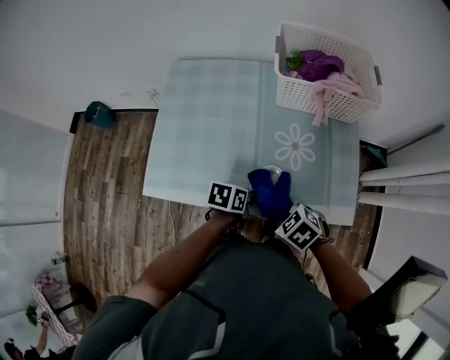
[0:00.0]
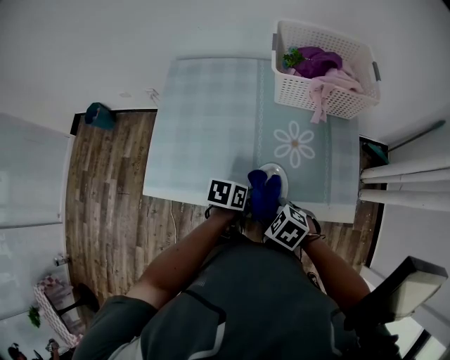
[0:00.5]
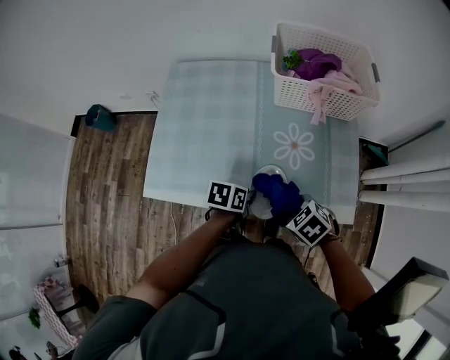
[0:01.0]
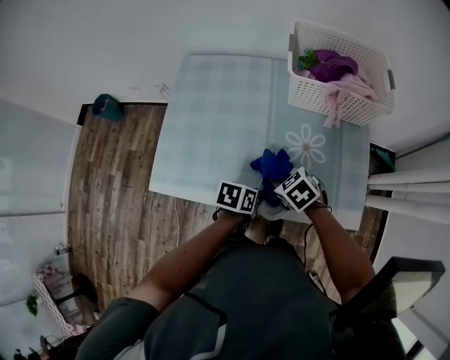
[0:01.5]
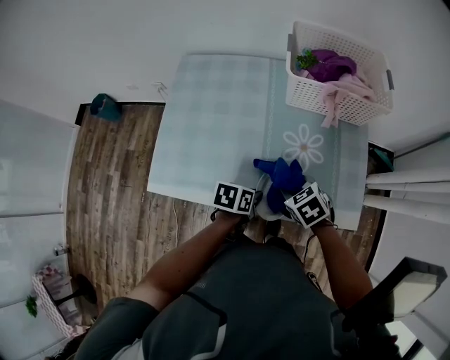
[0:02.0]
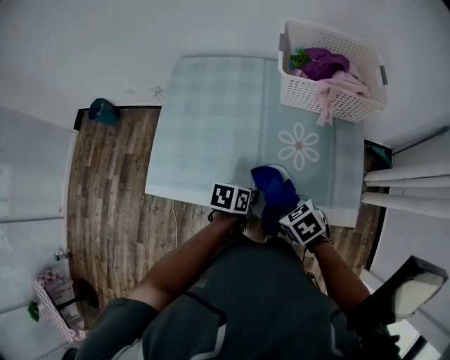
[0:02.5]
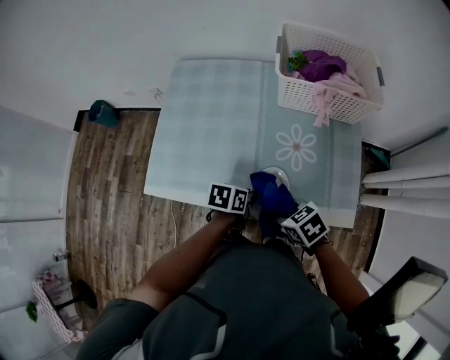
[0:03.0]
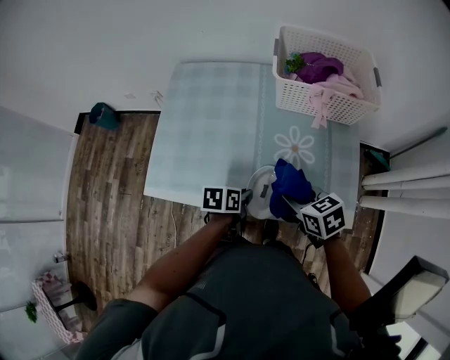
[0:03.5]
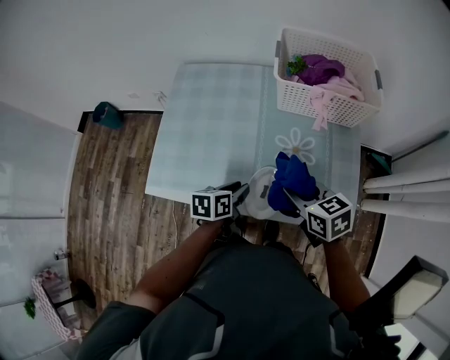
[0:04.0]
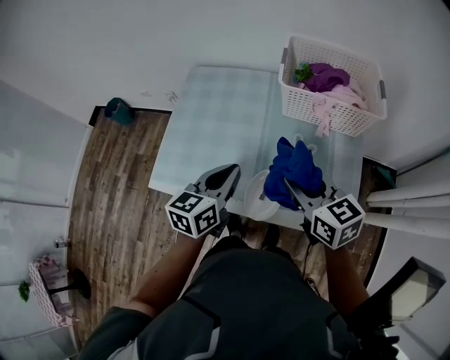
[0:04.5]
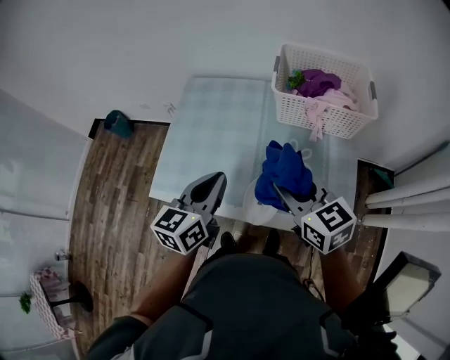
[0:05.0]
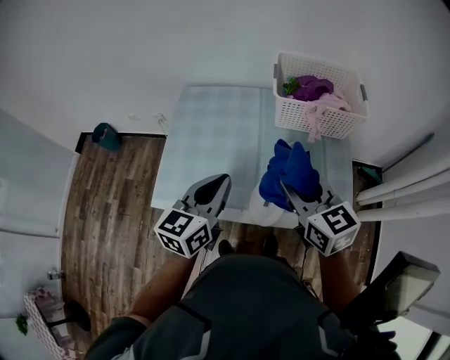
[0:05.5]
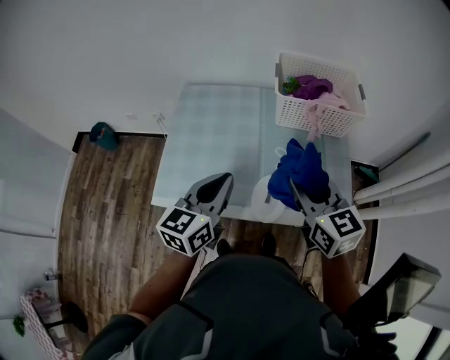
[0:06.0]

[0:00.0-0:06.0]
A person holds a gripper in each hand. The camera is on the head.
0:00.0 to 0:02.0: The right gripper moves approximately 10 cm.
0:02.0 to 0:04.0: The right gripper shifts approximately 10 cm upward, and changes its angle by roughly 30 degrees. Meanwhile the left gripper moves some 5 cm.
0:04.0 to 0:06.0: Both grippers travel together upward, some 20 cm. The right gripper turns by approximately 30 degrees; the left gripper turns by some 40 degrees, and closes.

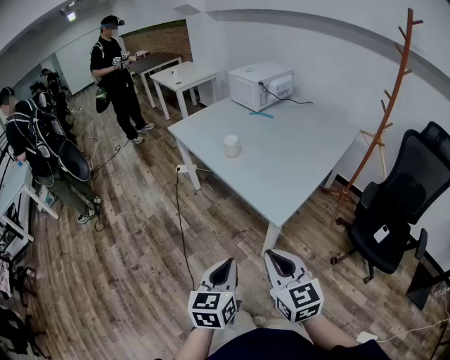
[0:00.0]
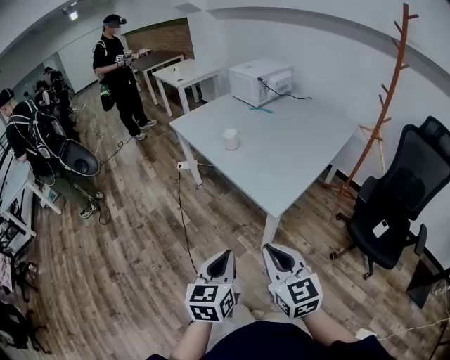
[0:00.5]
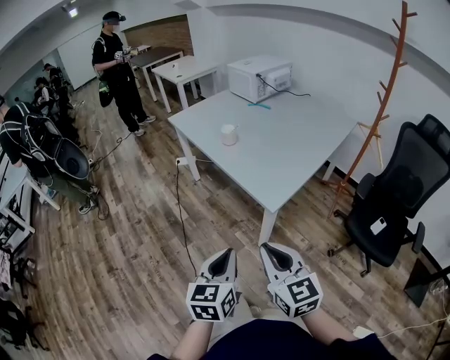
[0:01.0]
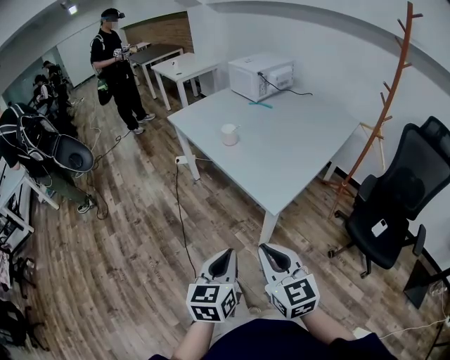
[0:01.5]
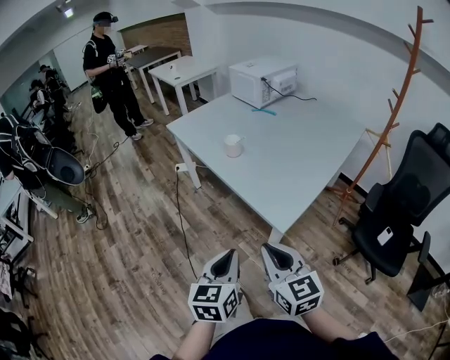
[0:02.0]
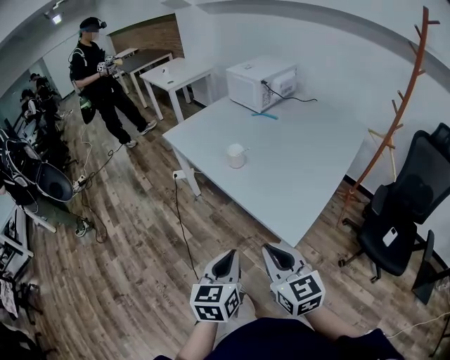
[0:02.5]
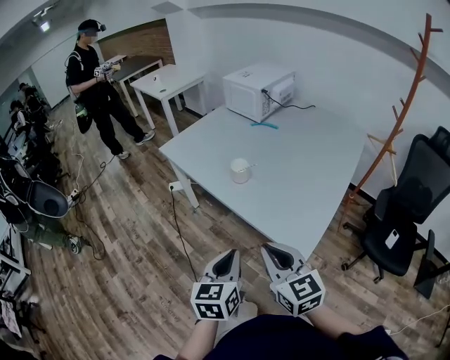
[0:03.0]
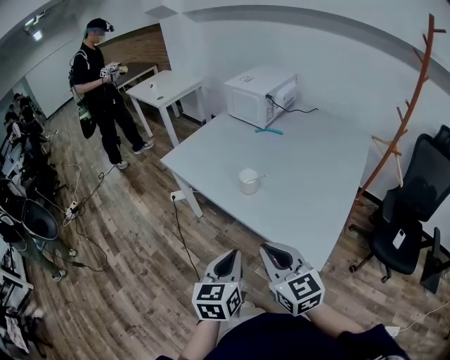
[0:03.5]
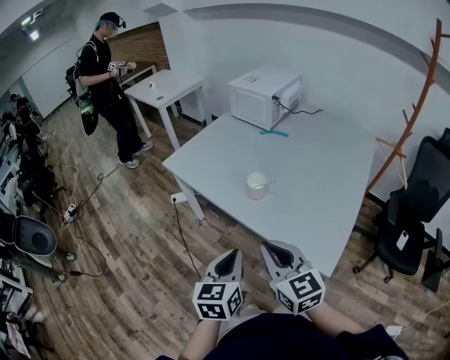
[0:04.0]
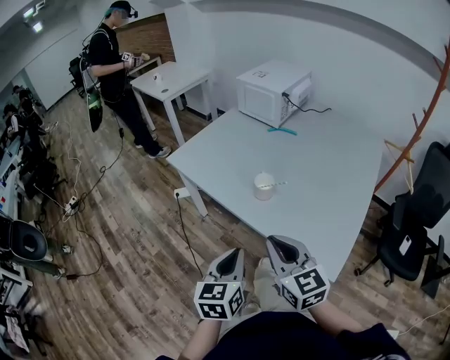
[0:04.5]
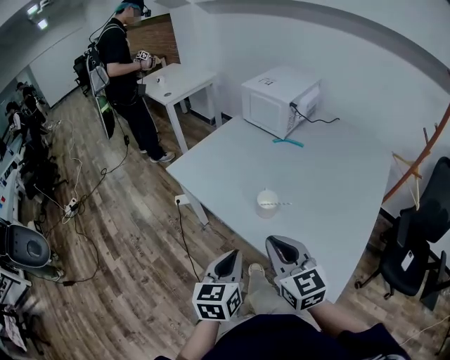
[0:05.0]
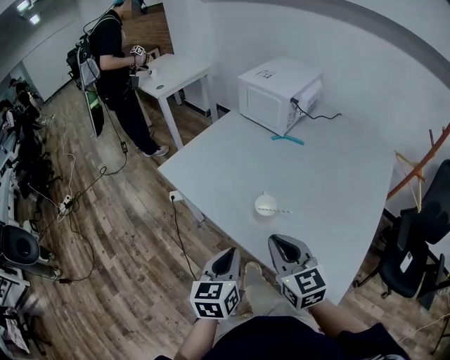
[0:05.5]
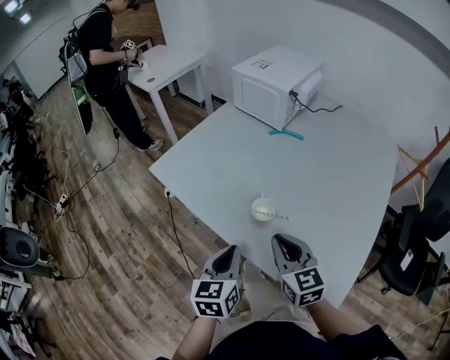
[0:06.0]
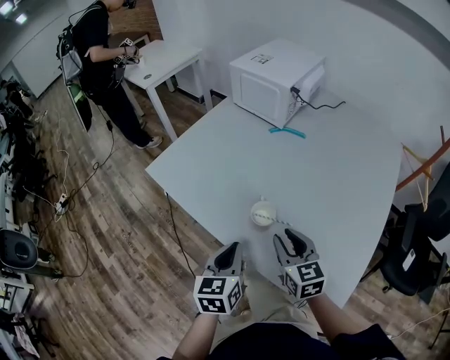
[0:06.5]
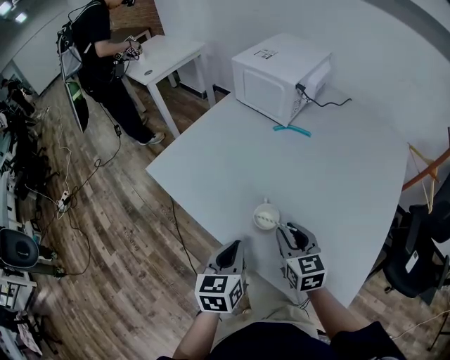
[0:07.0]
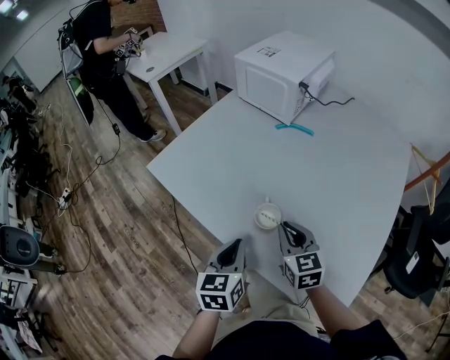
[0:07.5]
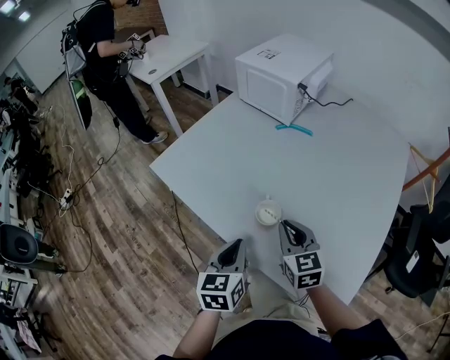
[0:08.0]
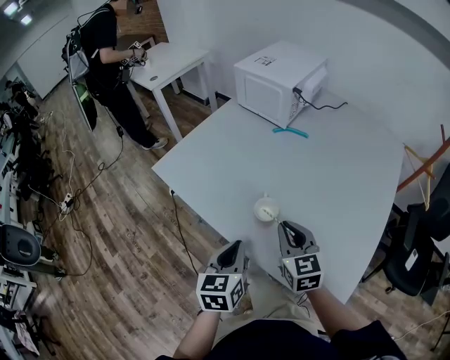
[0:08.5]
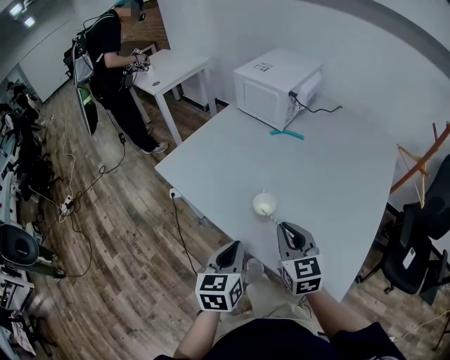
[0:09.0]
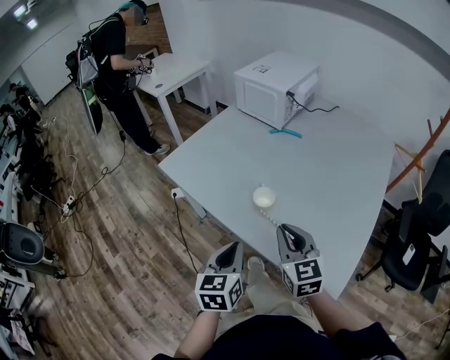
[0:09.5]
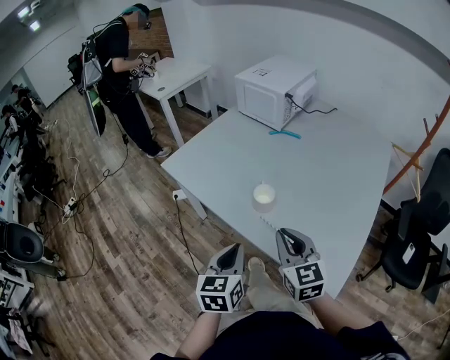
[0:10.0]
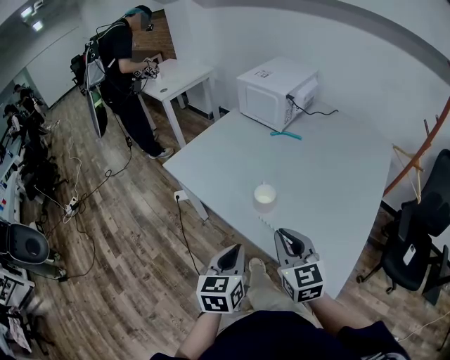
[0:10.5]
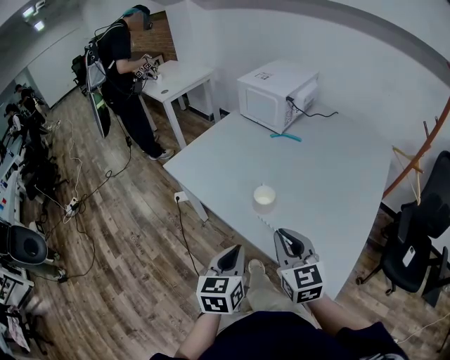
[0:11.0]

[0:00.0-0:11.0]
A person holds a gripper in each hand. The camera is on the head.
0:00.0 to 0:02.0: The grippers both shift forward by roughly 5 cm.
0:02.0 to 0:03.5: The two grippers go roughly 25 cm forward and to the left.
0:03.5 to 0:05.5: Both grippers travel together forward, approximately 20 cm.
0:05.5 to 0:07.5: The left gripper is displaced forward and downward by roughly 10 cm. Meanwhile the right gripper heads forward and downward, covering some 15 cm.
0:07.5 to 0:09.0: The left gripper moves backward, roughly 5 cm; the right gripper travels upward and backward by approximately 10 cm.
0:09.0 to 0:11.0: The grippers both shift backward by roughly 10 cm.

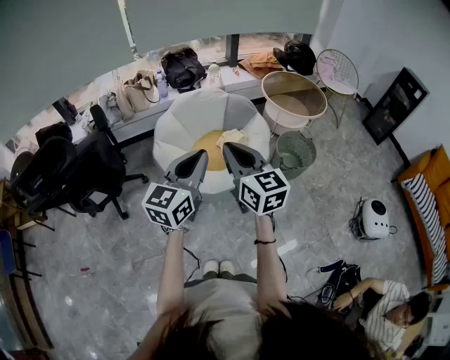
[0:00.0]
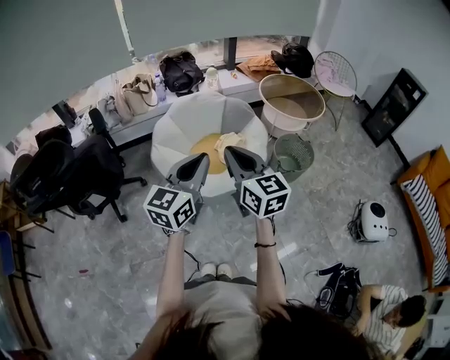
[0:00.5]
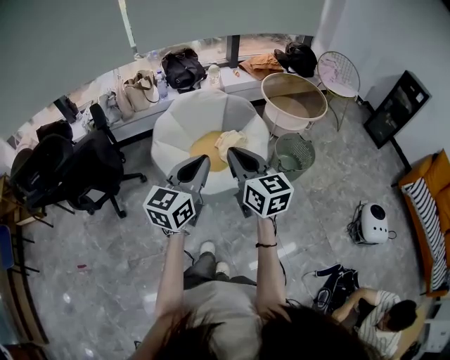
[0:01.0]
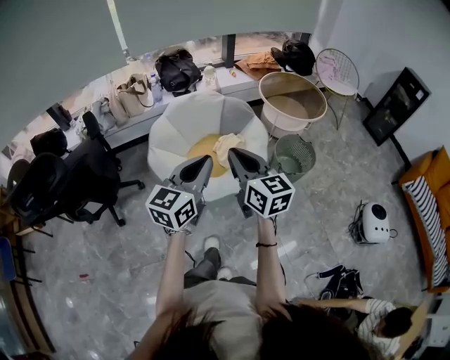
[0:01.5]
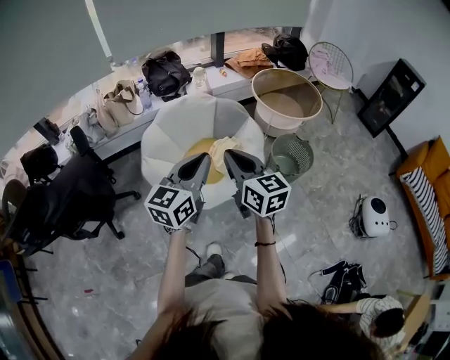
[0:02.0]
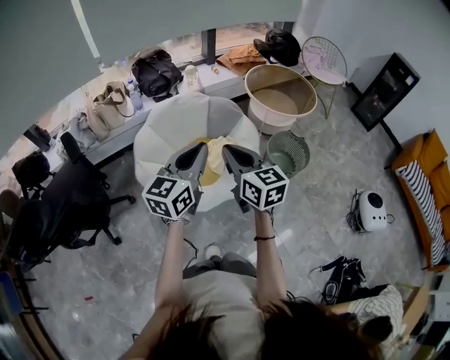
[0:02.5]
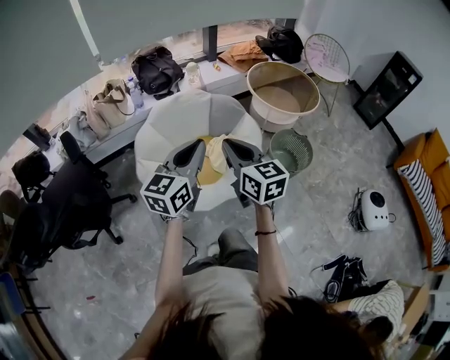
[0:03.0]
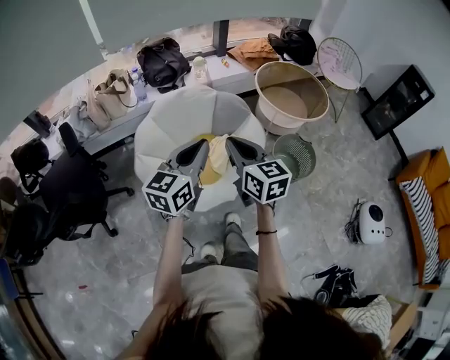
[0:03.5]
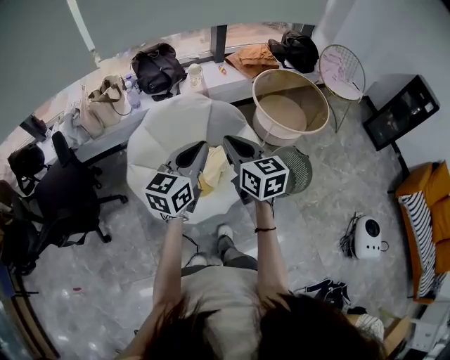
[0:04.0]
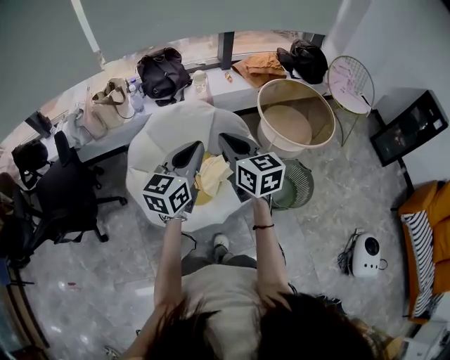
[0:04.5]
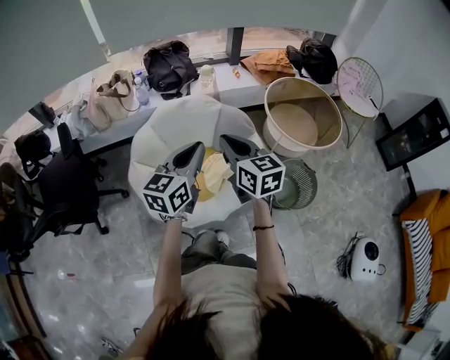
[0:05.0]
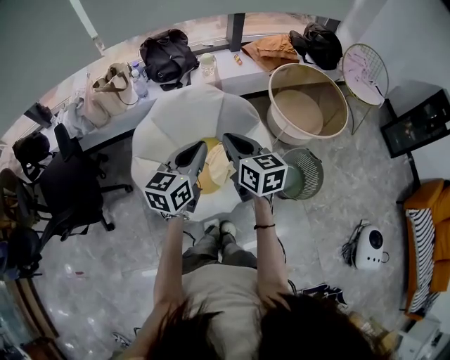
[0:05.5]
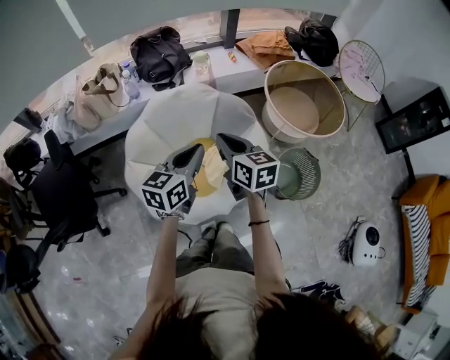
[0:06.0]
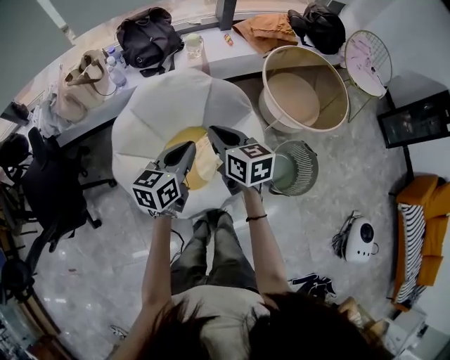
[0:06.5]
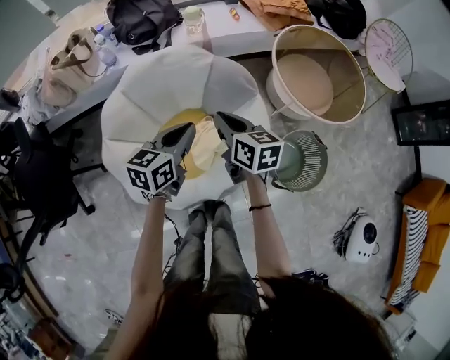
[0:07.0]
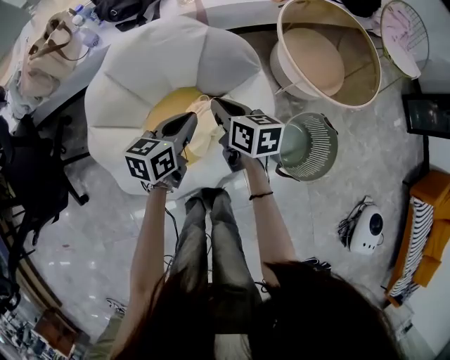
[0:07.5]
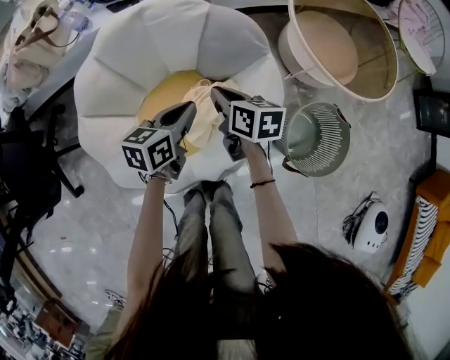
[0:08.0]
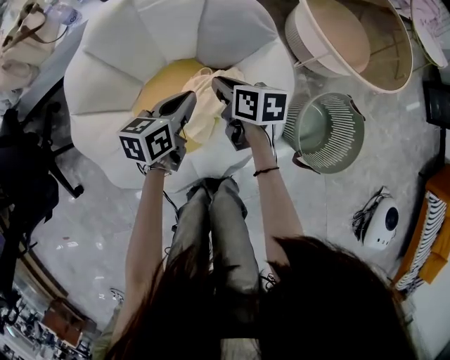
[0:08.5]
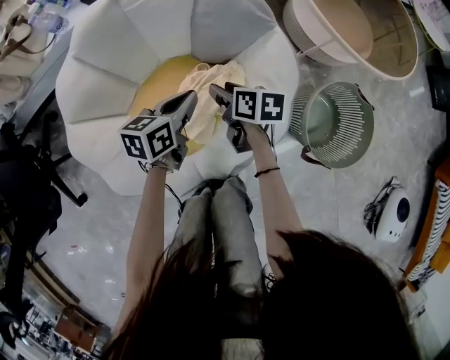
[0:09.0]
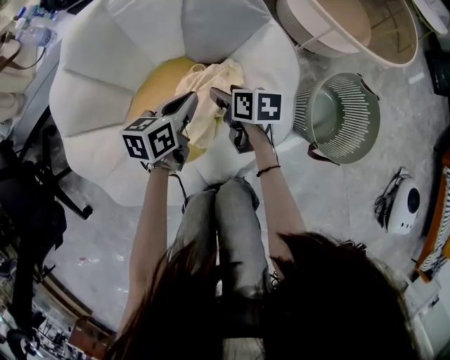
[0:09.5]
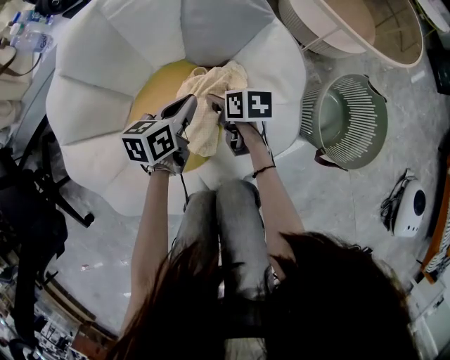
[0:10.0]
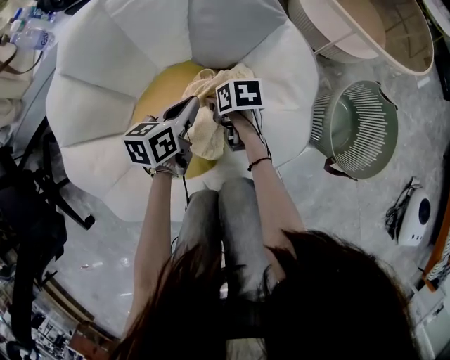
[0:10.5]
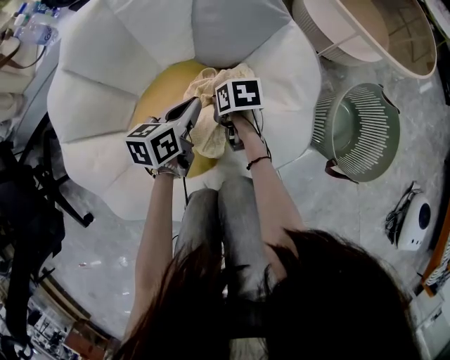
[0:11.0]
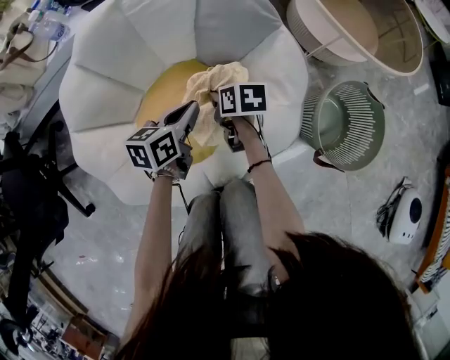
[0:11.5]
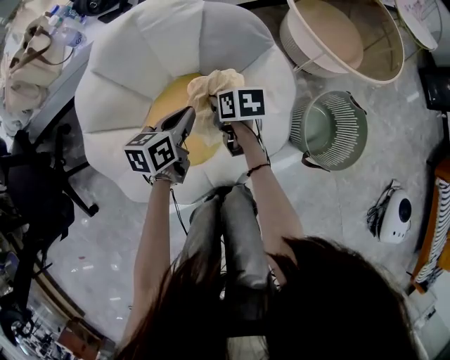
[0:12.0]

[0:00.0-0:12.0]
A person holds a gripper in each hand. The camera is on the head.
0:00.0 to 0:02.0: The grippers both shift forward by approximately 15 cm.
0:02.0 to 0:04.0: The grippers both shift forward by roughly 20 cm.
0:04.0 to 0:06.0: Both grippers move forward and downward, approximately 15 cm.
0:06.0 to 0:08.0: Both grippers move downward, roughly 35 cm. The right gripper turns by approximately 20 degrees. The left gripper swivels roughly 20 degrees.
0:08.0 to 0:10.0: The two grippers go approximately 20 cm downward. The right gripper turns by about 20 degrees, and opens its fingers.
0:10.0 to 0:12.0: Both grippers move upward, roughly 15 cm. The right gripper closes its fingers.
